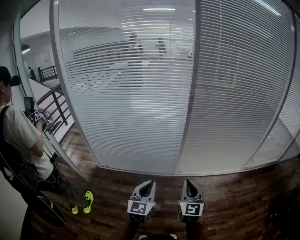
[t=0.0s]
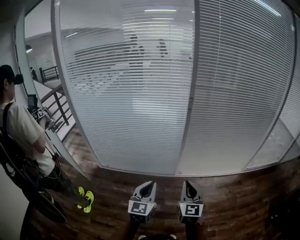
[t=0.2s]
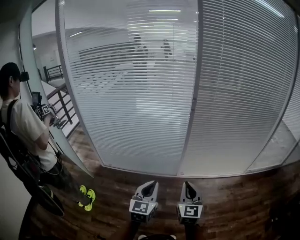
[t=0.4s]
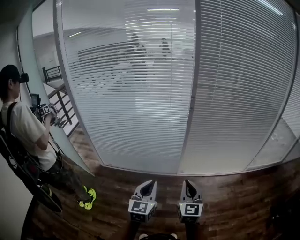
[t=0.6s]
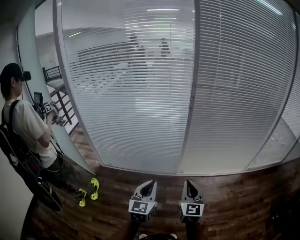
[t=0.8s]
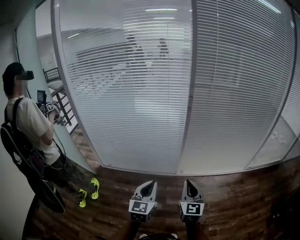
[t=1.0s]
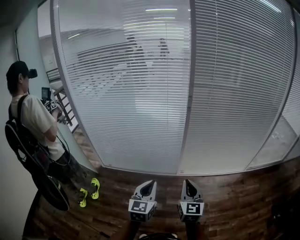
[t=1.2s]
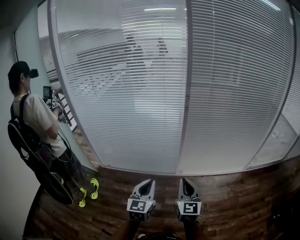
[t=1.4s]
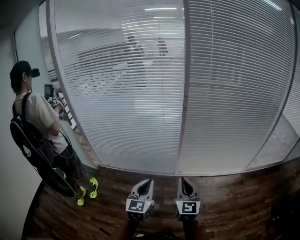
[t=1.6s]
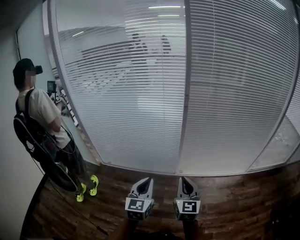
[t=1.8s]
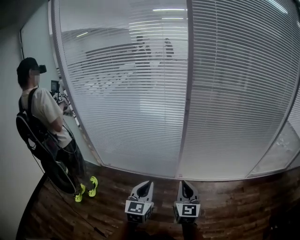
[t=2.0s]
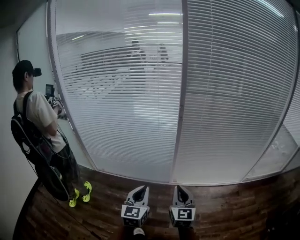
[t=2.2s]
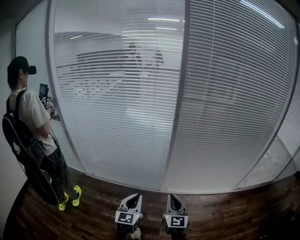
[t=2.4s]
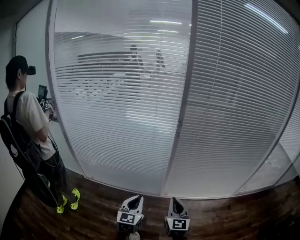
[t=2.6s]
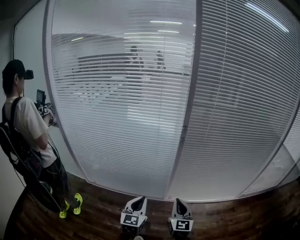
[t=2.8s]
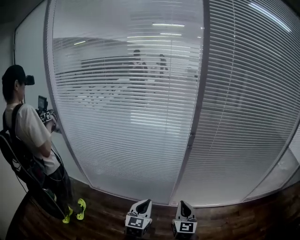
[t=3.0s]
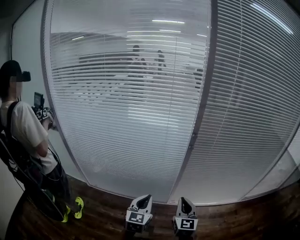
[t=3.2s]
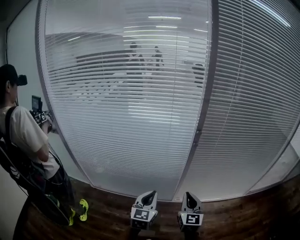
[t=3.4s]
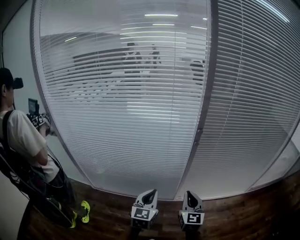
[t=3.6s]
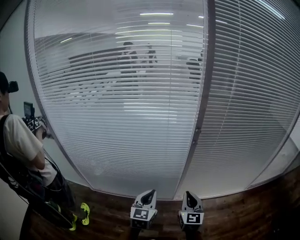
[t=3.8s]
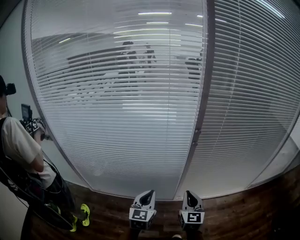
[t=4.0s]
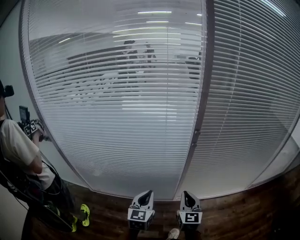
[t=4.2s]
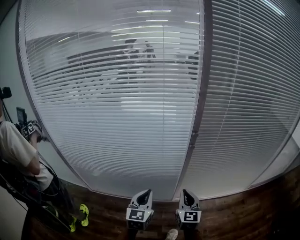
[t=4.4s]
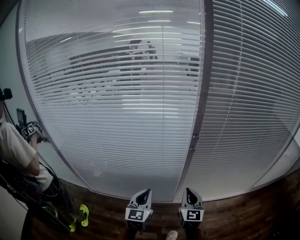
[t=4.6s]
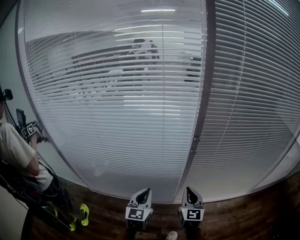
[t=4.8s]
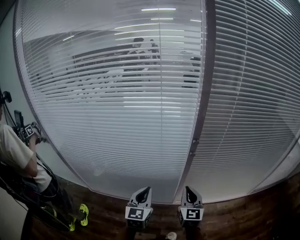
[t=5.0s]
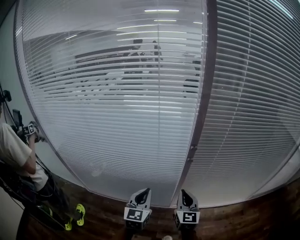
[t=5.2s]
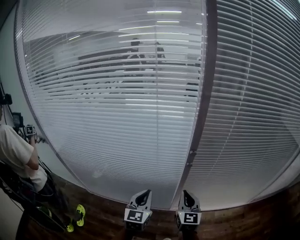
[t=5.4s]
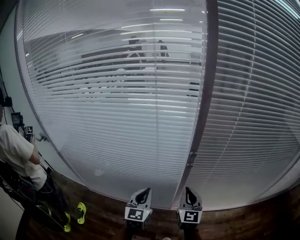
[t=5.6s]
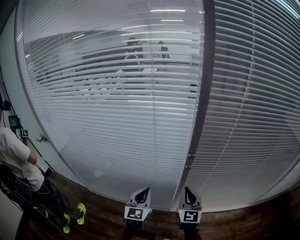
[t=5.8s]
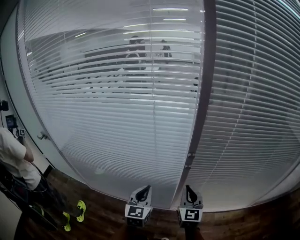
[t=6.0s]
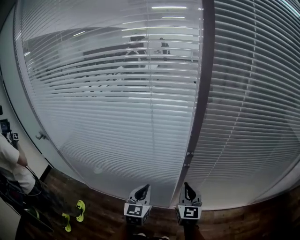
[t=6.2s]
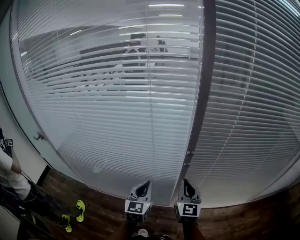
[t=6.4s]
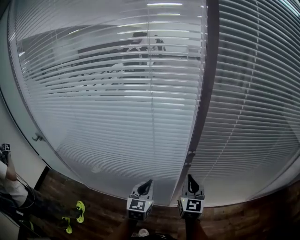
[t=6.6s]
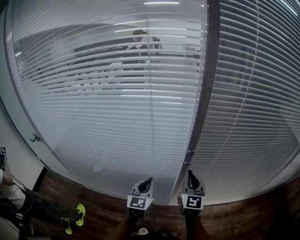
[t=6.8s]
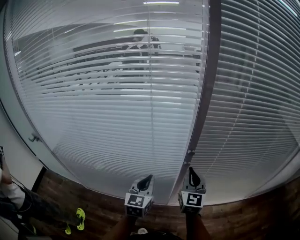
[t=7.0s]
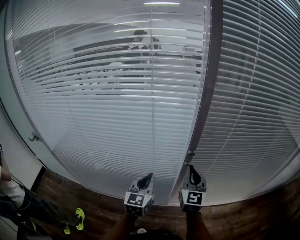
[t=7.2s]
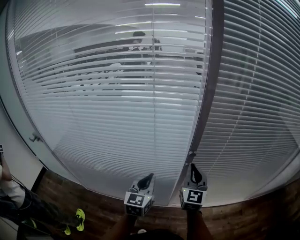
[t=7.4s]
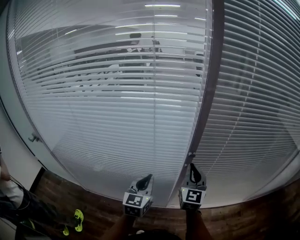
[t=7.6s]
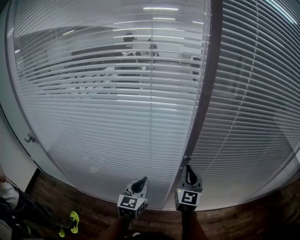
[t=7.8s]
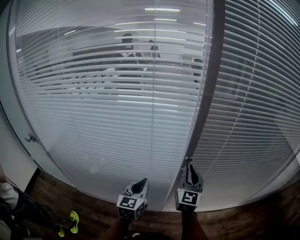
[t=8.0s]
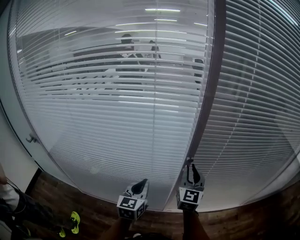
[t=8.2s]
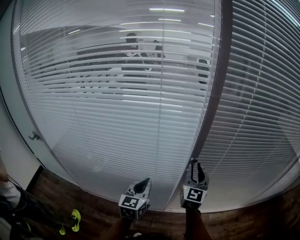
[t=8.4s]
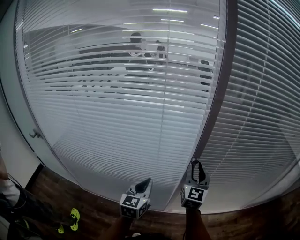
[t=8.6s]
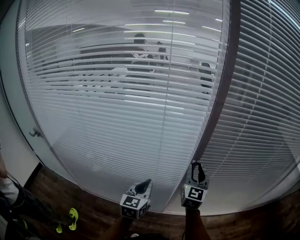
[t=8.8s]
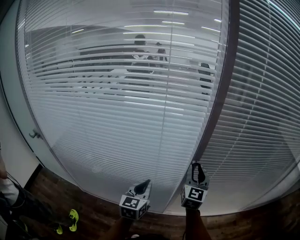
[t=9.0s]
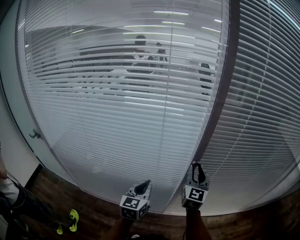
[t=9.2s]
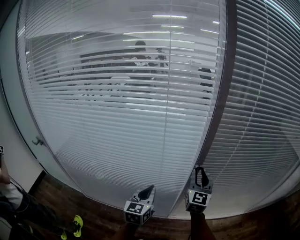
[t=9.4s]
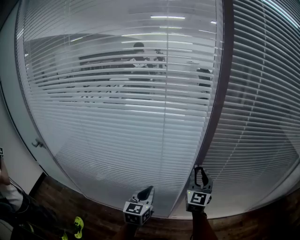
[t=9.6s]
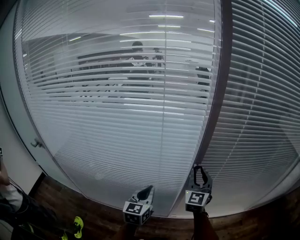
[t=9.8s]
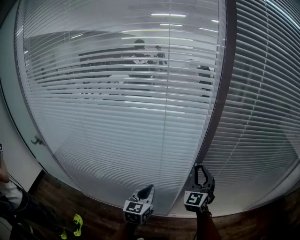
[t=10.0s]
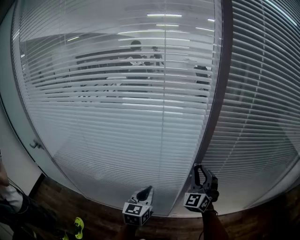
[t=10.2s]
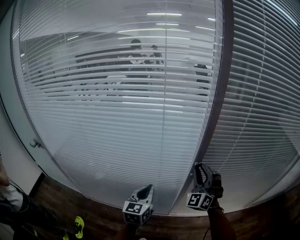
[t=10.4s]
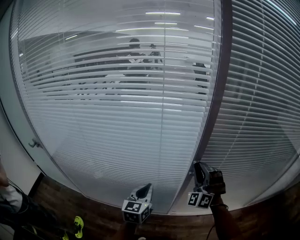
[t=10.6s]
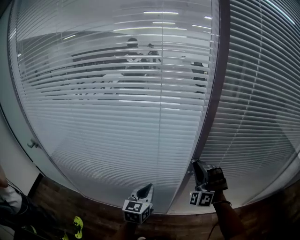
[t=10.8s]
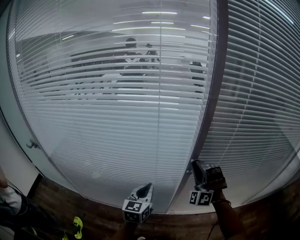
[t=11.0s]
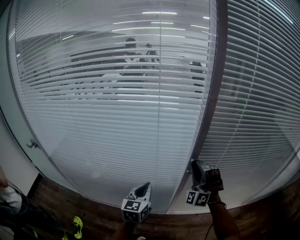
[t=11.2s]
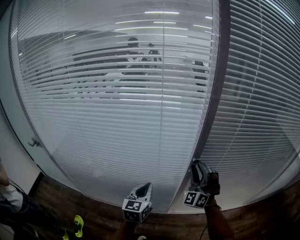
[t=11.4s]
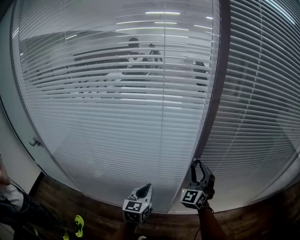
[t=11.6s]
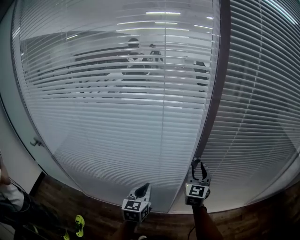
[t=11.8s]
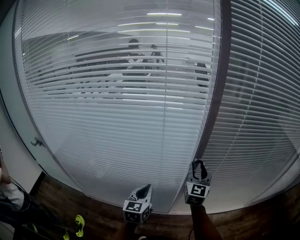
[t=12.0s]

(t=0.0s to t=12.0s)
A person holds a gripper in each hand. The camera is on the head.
t=0.0s - t=1.6s: The grippers move only a little.
t=1.6s - t=3.0s: The grippers both shift forward by some 15 cm.
t=3.0s - t=4.4s: The two grippers go some 10 cm forward.
t=4.4s - t=6.0s: Both grippers travel together forward, some 15 cm.
t=6.0s - t=7.6s: The left gripper goes about 5 cm forward. The right gripper travels upward and forward by approximately 10 cm.
t=7.6s - t=9.0s: The right gripper opens.
t=9.0s - t=10.4s: The right gripper rolls counterclockwise, seen from behind, by roughly 50 degrees.
t=10.4s - t=12.0s: The right gripper rotates around the line of its fingers by approximately 50 degrees, clockwise from behind.

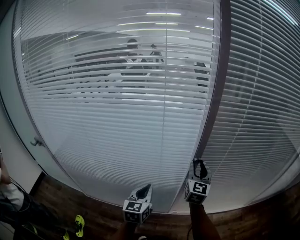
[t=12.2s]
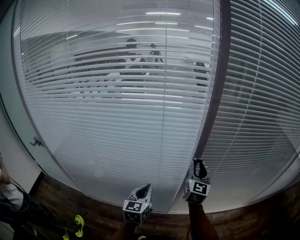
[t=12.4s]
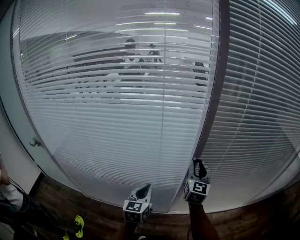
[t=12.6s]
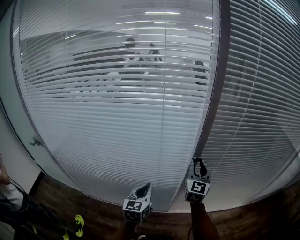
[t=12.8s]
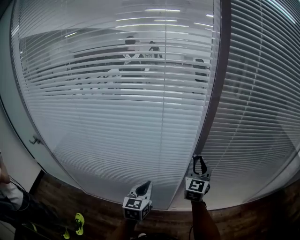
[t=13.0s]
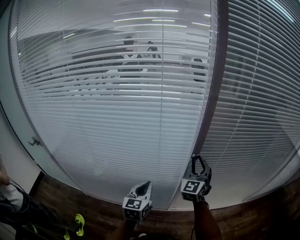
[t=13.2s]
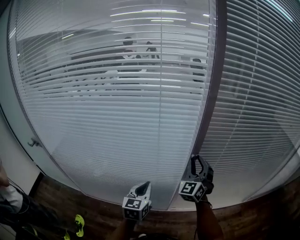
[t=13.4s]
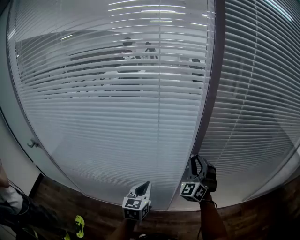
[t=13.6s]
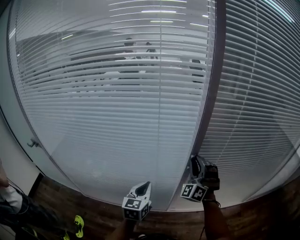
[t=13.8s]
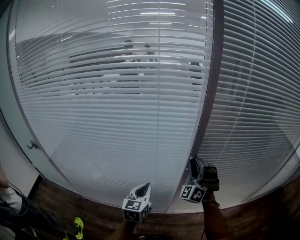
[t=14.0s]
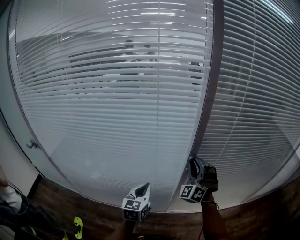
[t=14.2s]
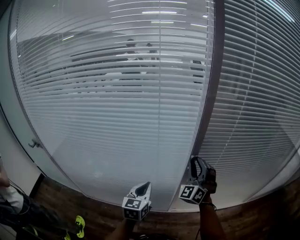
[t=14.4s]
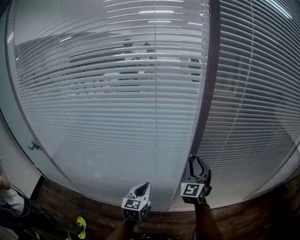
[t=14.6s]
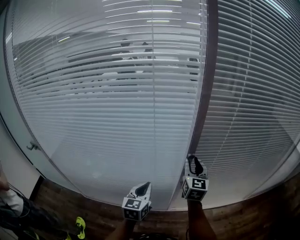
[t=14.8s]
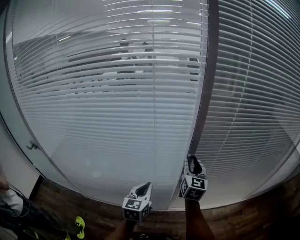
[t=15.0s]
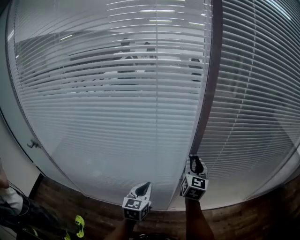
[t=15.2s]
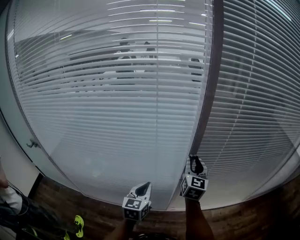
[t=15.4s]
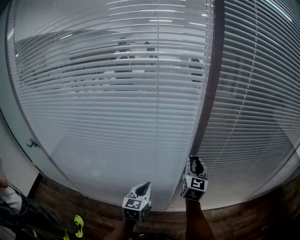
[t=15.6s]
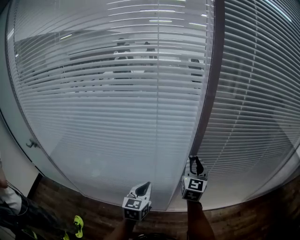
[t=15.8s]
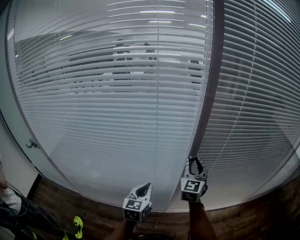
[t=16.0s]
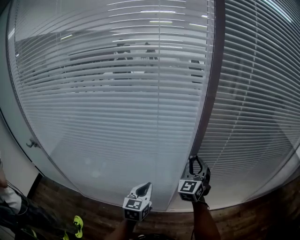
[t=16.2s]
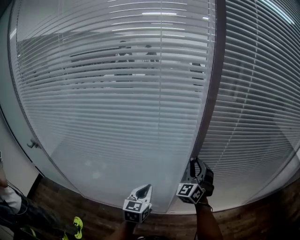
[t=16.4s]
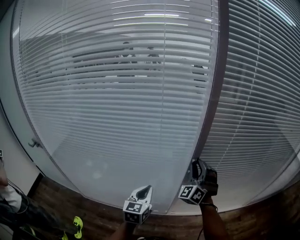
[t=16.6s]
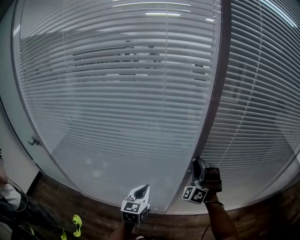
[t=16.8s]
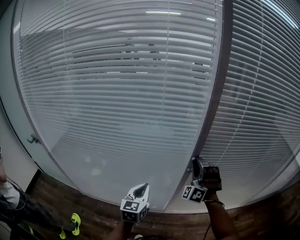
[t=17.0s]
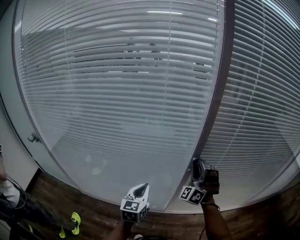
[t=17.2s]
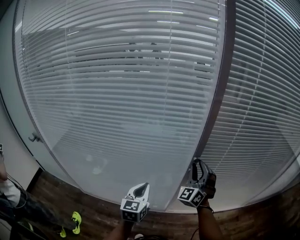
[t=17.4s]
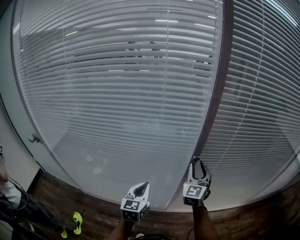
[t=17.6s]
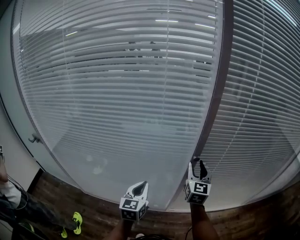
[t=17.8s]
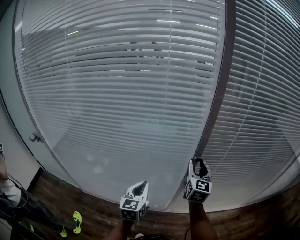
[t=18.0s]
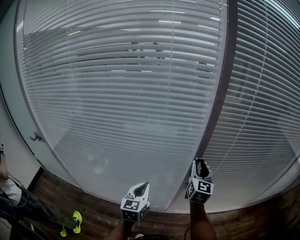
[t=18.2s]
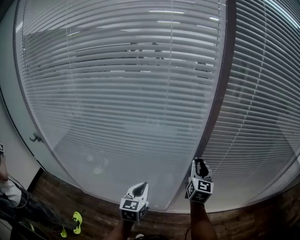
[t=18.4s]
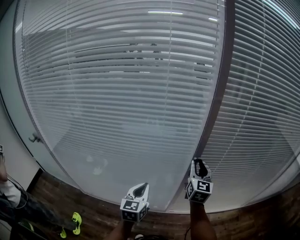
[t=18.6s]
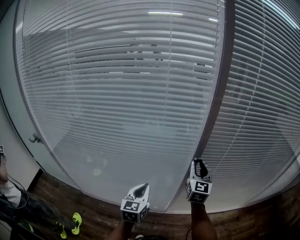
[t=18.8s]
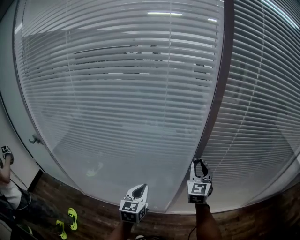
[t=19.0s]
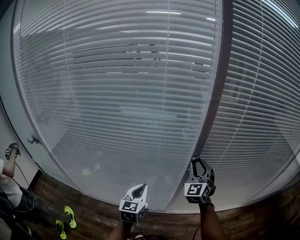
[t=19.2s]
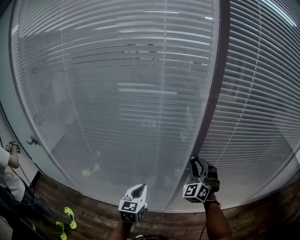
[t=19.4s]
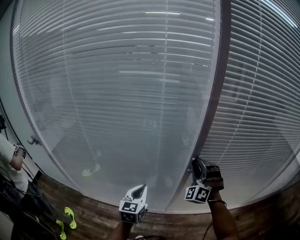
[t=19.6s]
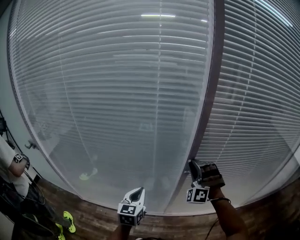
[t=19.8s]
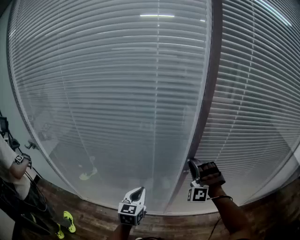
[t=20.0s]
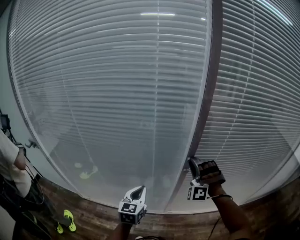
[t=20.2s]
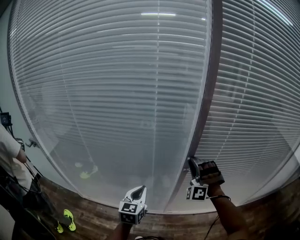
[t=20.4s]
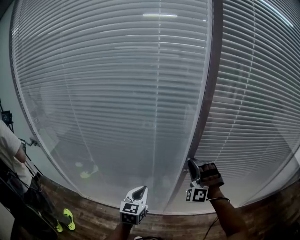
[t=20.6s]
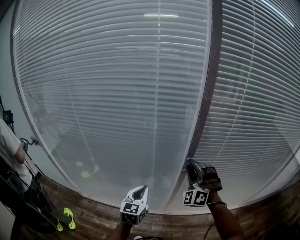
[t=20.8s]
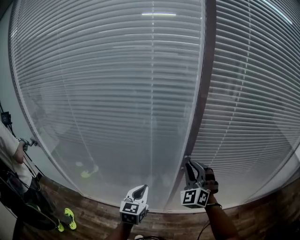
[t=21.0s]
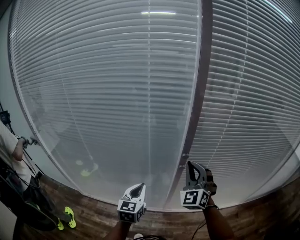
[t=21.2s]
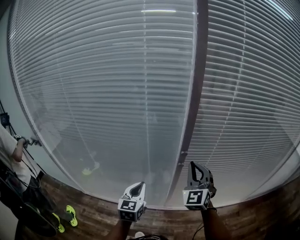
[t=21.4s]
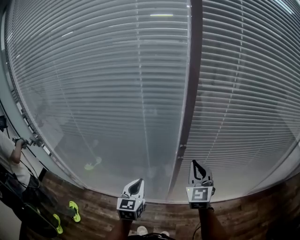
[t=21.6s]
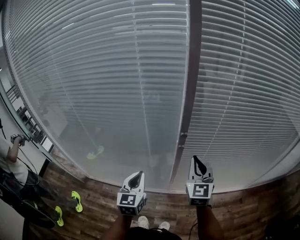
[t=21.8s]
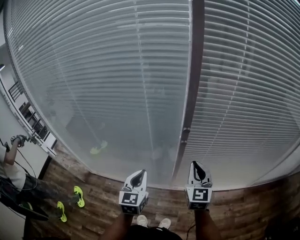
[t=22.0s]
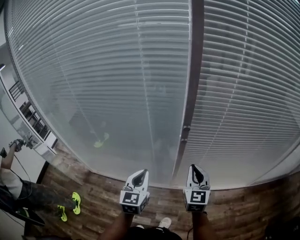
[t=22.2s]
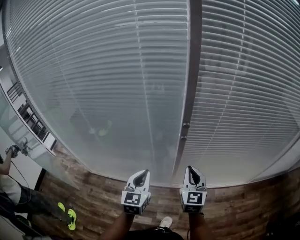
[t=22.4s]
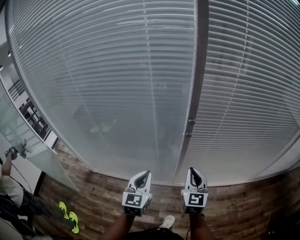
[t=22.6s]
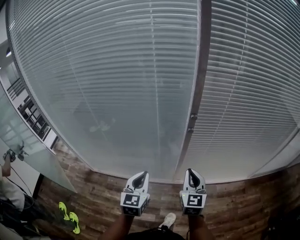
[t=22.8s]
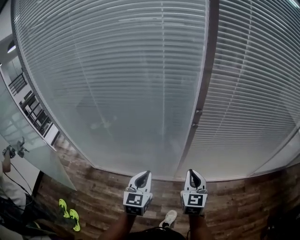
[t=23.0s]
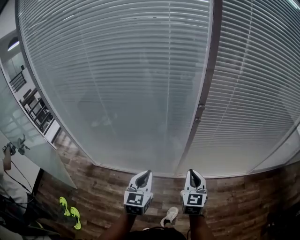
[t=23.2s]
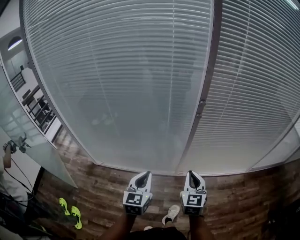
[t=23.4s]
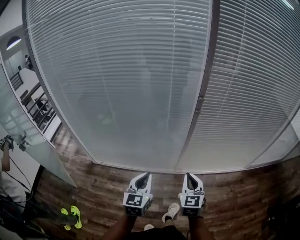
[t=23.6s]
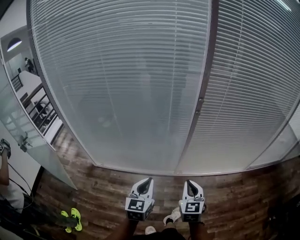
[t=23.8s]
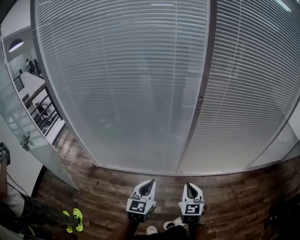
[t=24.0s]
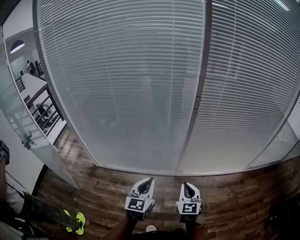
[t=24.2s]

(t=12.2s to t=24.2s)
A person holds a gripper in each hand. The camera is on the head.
t=12.2s - t=13.8s: The right gripper rolls counterclockwise, seen from behind, by some 70 degrees.
t=13.8s - t=15.2s: The right gripper rotates around the line of its fingers by some 70 degrees, clockwise from behind.
t=15.2s - t=16.6s: The right gripper rotates around the line of its fingers by some 70 degrees, counterclockwise from behind.
t=16.6s - t=18.2s: The right gripper rolls clockwise, seen from behind, by some 70 degrees.
t=18.2s - t=19.8s: The right gripper rolls counterclockwise, seen from behind, by approximately 90 degrees.
t=19.8s - t=21.2s: The right gripper moves backward, about 5 cm, rolls clockwise, seen from behind, by roughly 40 degrees, and closes its fingers.
t=21.2s - t=22.6s: The left gripper goes roughly 10 cm backward, while the right gripper goes about 15 cm backward and downward, and twists approximately 40 degrees clockwise, seen from behind.
t=22.6s - t=24.2s: Both grippers move backward, roughly 25 cm.
